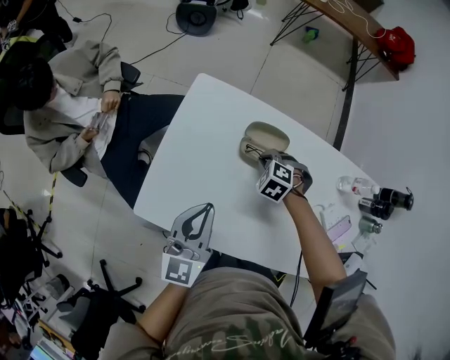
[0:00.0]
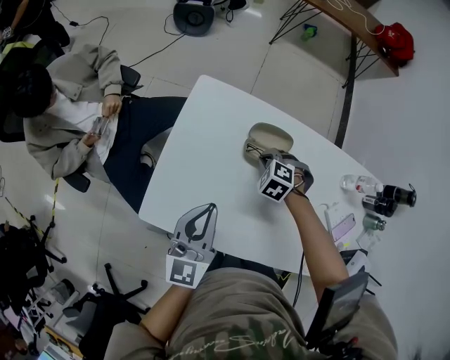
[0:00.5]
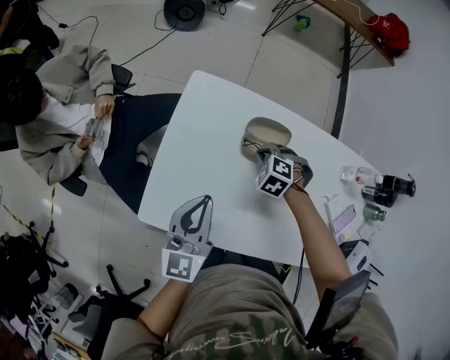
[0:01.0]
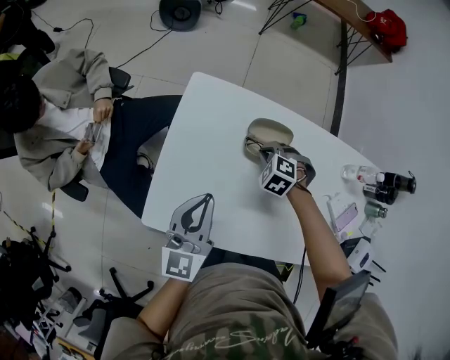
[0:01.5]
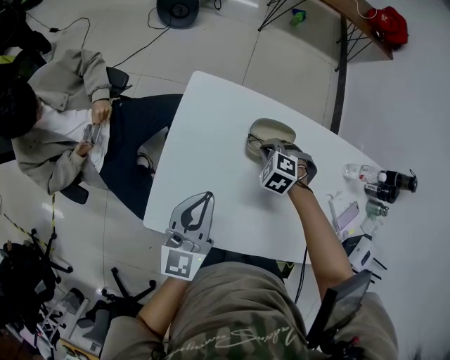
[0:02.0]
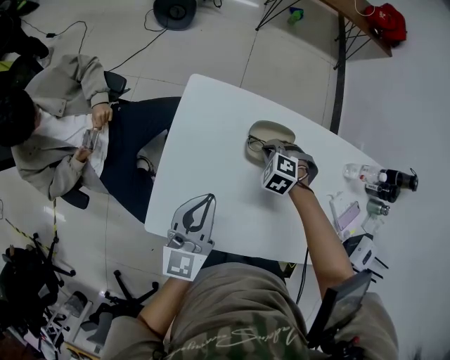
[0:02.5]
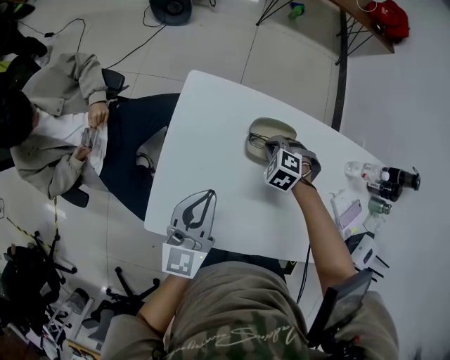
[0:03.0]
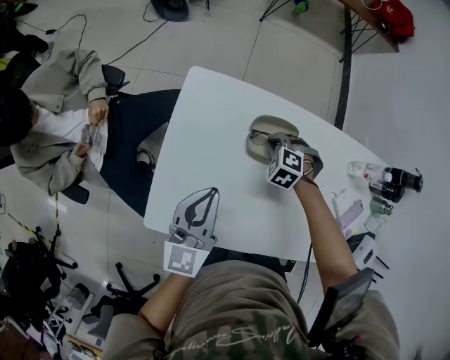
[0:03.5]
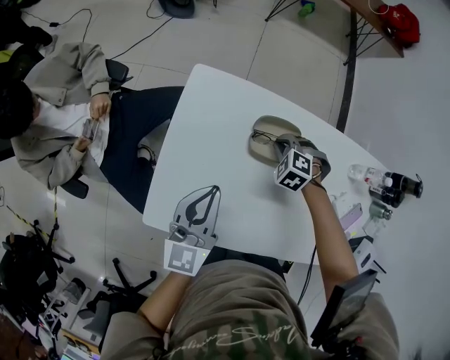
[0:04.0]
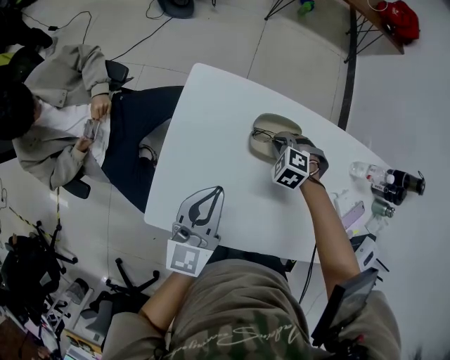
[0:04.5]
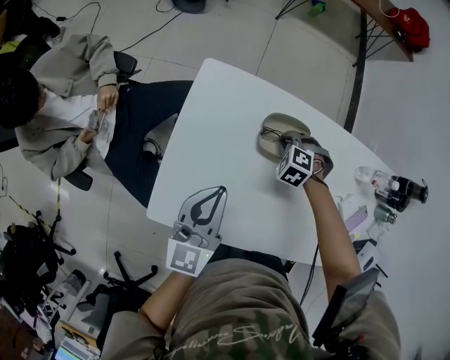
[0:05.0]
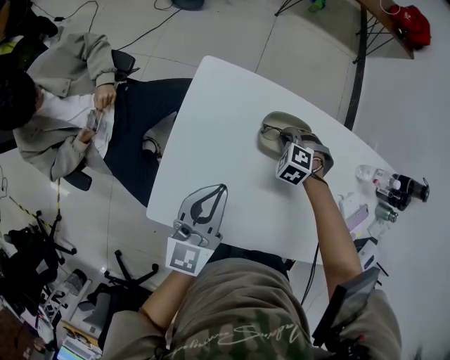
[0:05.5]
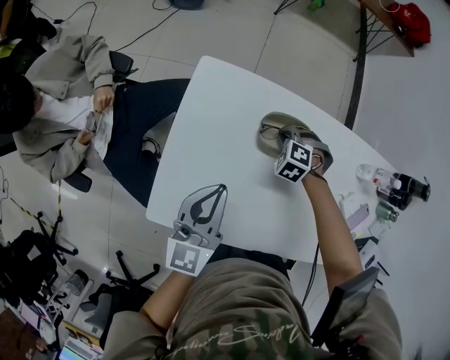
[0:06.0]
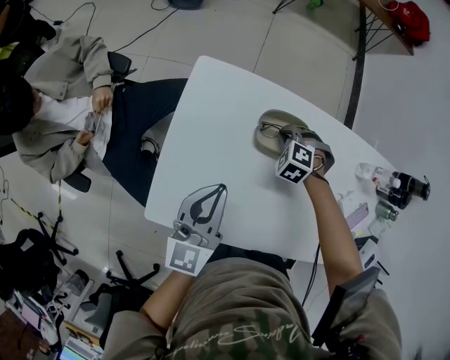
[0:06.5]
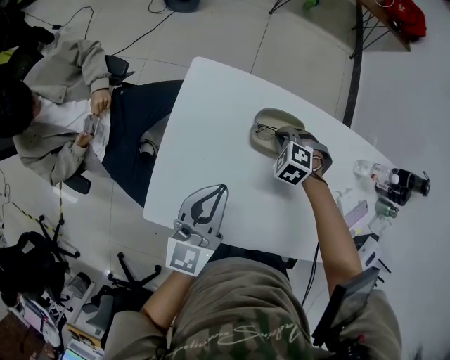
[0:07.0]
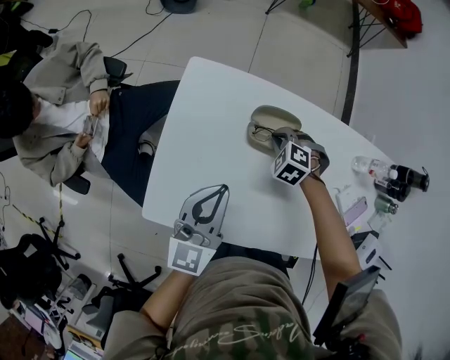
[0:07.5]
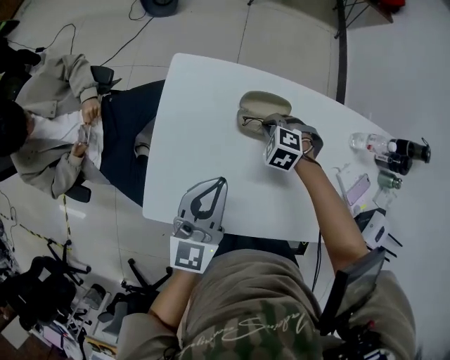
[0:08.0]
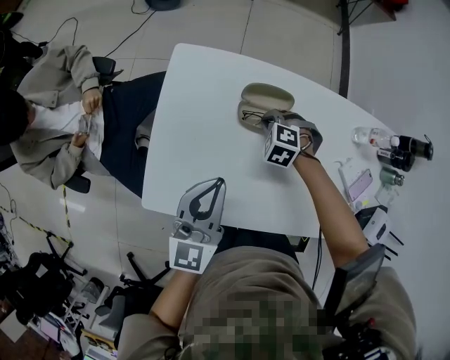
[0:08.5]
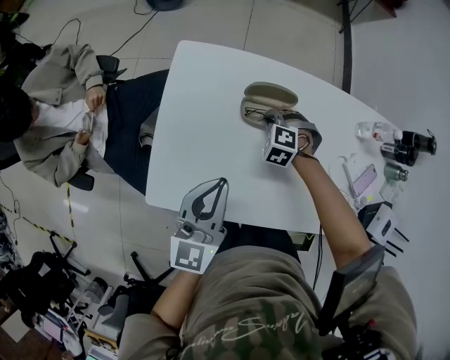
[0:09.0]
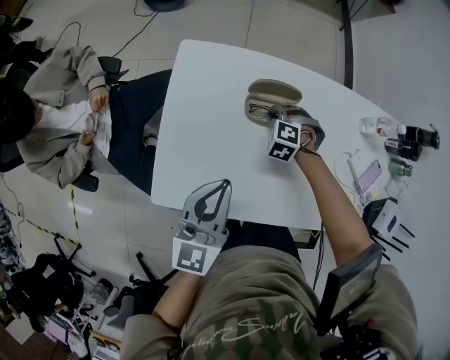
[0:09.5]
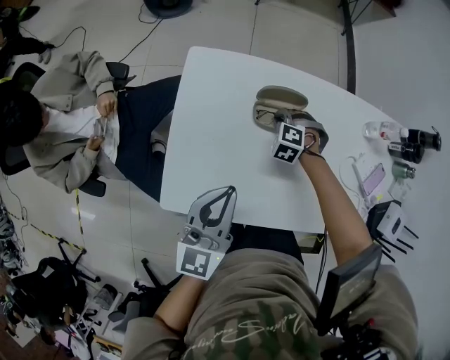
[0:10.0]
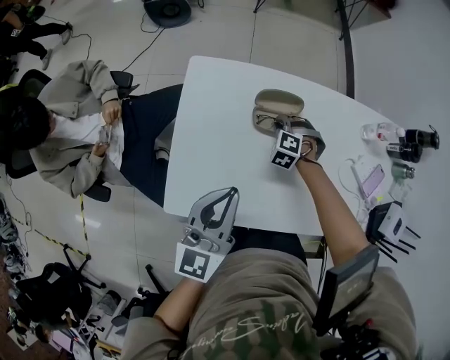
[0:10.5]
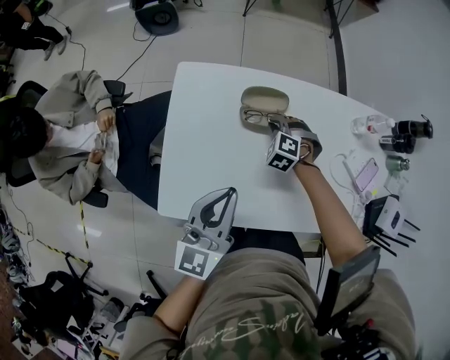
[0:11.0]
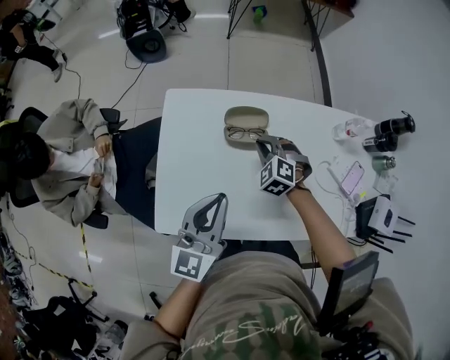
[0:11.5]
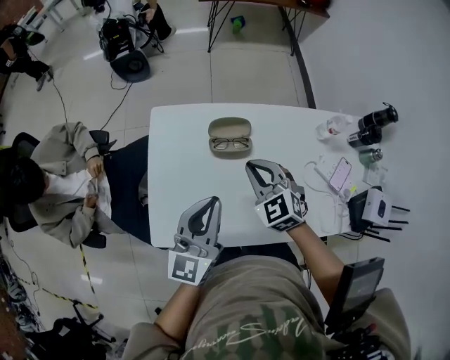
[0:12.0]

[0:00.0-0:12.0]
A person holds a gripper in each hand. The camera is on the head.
0:00.0 to 0:02.0: The left gripper shifts by approximately 5 cm.
0:02.0 to 0:08.0: The grippers move only a little.
0:08.0 to 0:10.0: The left gripper shifts by about 5 cm.
0:10.0 to 0:12.0: The left gripper goes roughly 10 cm upward and to the right; the right gripper goes roughly 25 cm upward, and angles its fingers upward, by approximately 30 degrees.

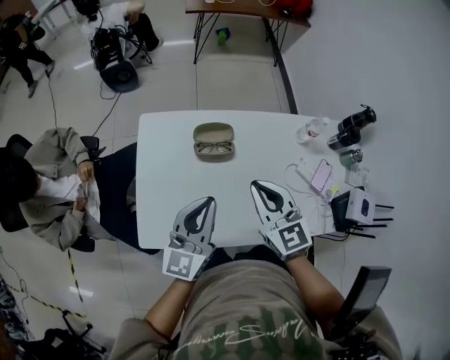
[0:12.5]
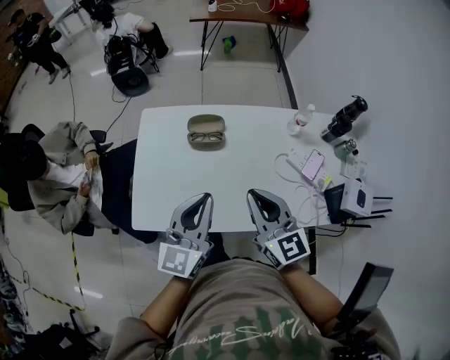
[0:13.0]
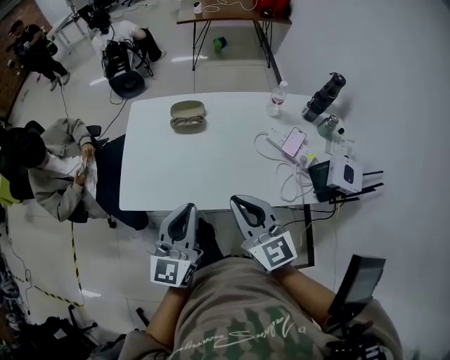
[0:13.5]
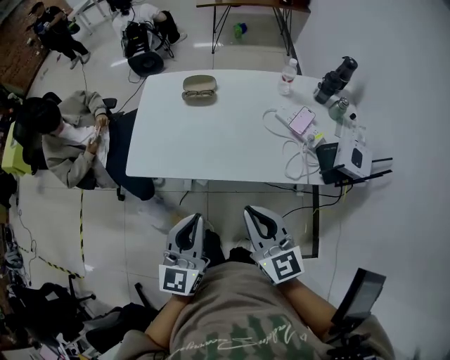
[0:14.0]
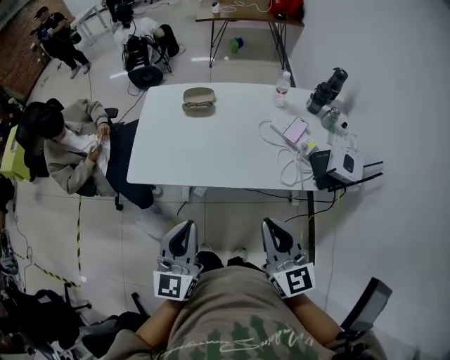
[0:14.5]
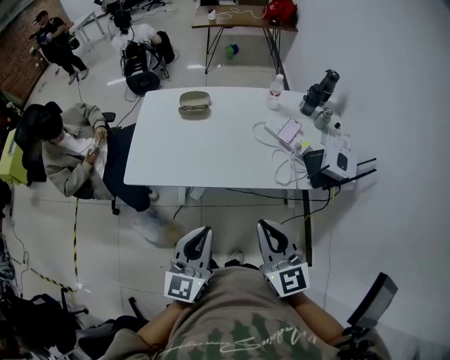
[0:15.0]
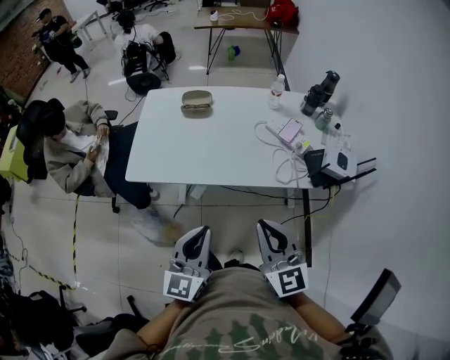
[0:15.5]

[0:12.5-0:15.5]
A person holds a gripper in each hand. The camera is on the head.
0:12.5 to 0:14.0: Both grippers move backward, about 35 cm.
0:14.0 to 0:15.5: The two grippers go roughly 5 cm backward.

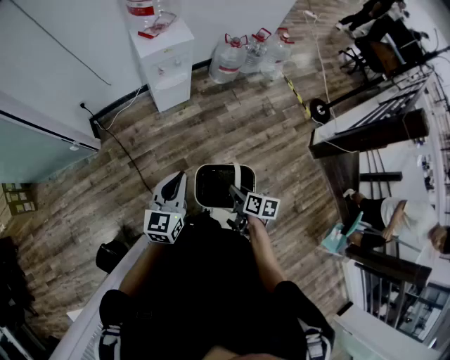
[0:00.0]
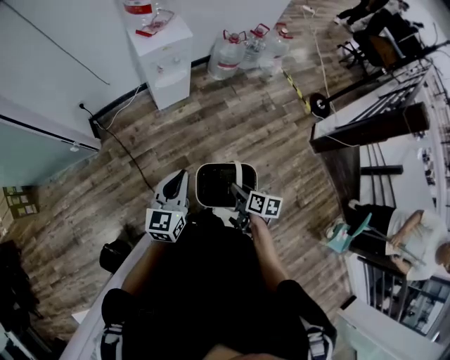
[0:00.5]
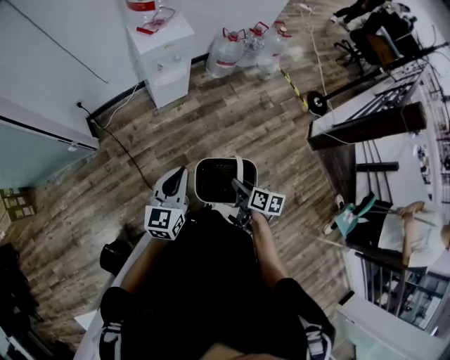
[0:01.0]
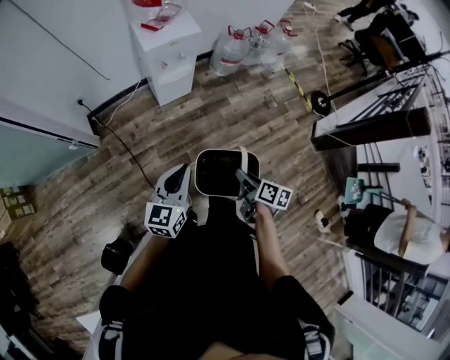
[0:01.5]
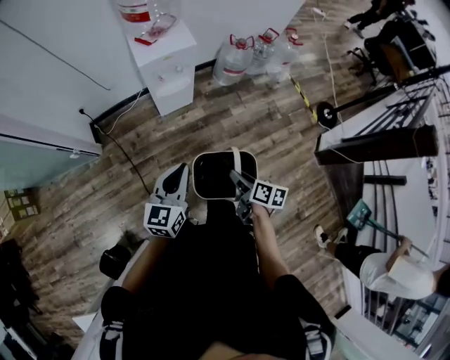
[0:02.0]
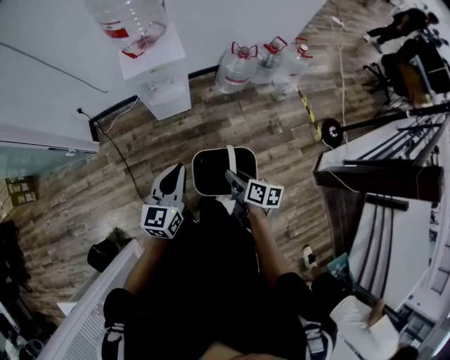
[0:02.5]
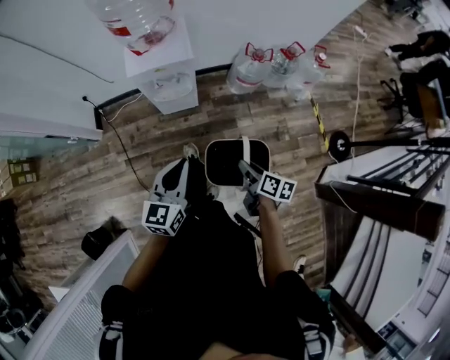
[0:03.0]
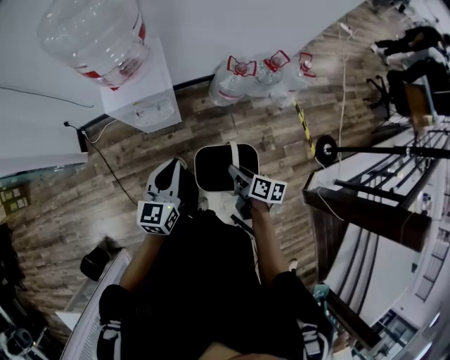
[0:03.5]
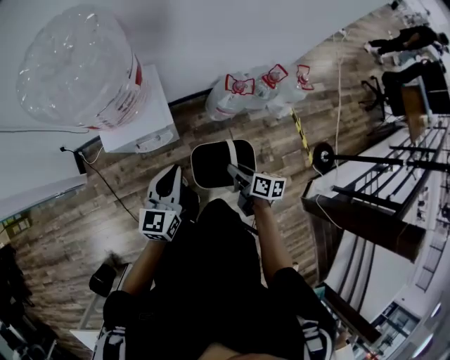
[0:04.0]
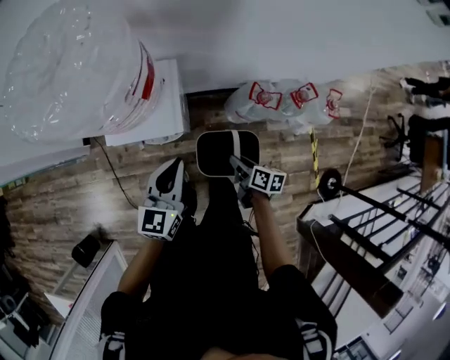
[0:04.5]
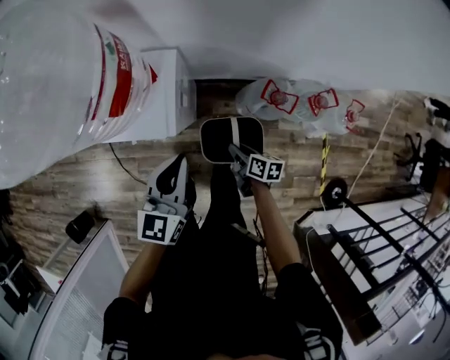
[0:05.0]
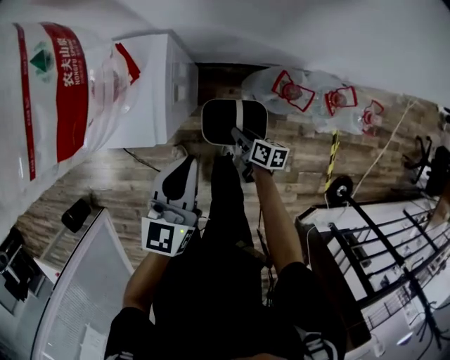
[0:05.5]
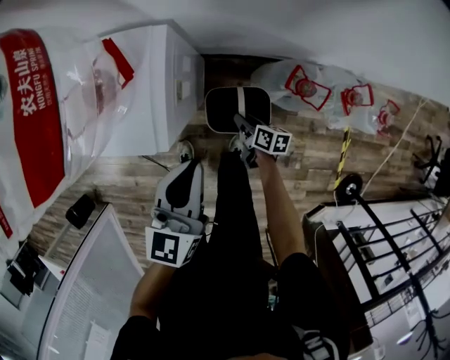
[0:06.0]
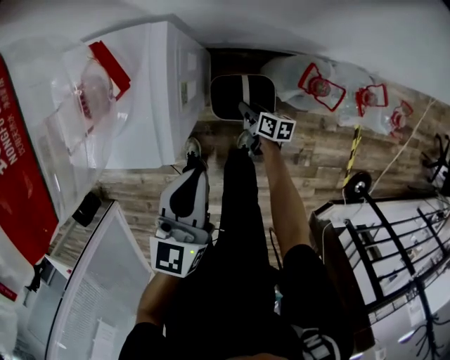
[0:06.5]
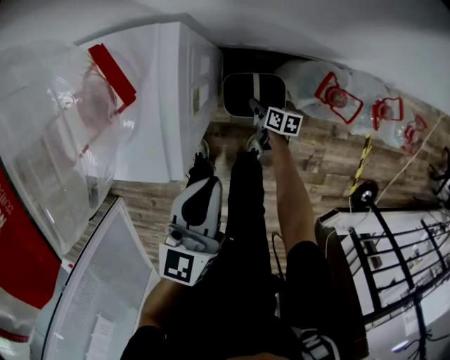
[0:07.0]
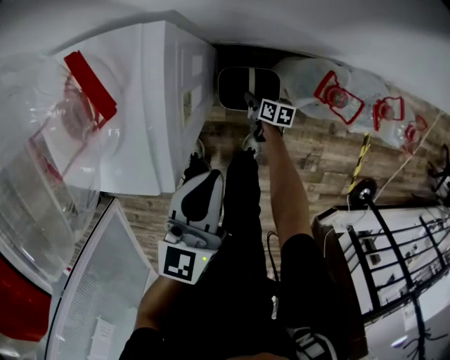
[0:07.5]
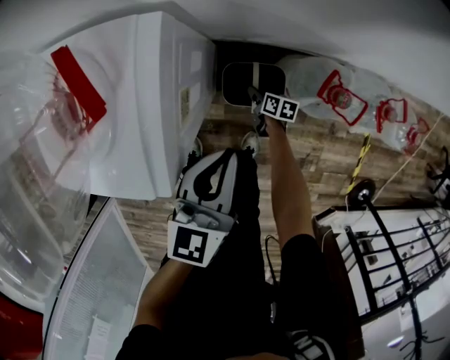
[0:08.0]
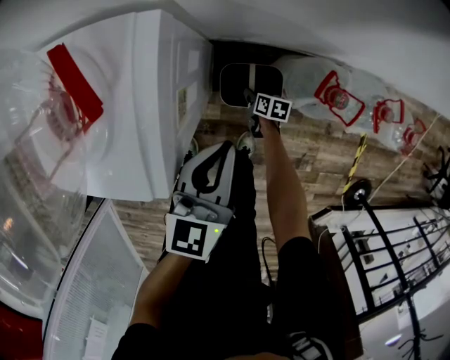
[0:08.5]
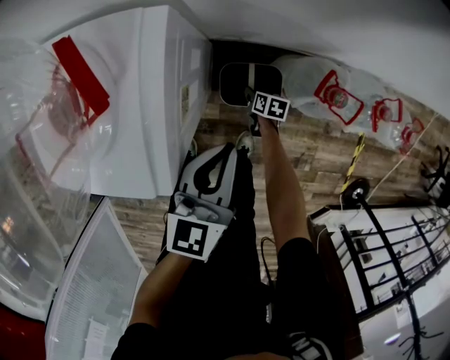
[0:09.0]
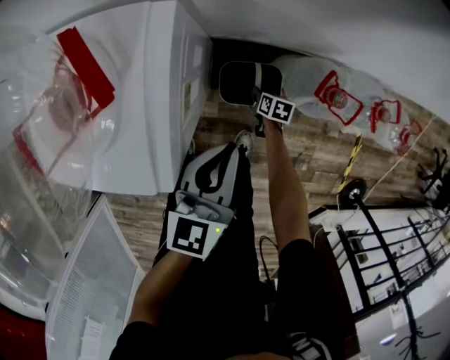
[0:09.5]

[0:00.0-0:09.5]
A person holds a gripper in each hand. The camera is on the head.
0:00.0 to 0:02.0: Both grippers move forward, approximately 15 cm.
0:02.0 to 0:04.0: The two grippers travel together, forward and to the right, approximately 50 cm.
0:04.0 to 0:05.5: The left gripper is displaced forward, to the right and downward by about 20 cm, and changes its angle by roughly 20 degrees. Meanwhile the right gripper is displaced downward and forward by roughly 30 cm, and turns by roughly 20 degrees.
0:05.5 to 0:07.5: The left gripper travels downward by some 10 cm. The right gripper is displaced downward by some 25 cm.
0:07.5 to 0:09.5: The left gripper heads downward, covering roughly 5 cm, while the right gripper moves roughly 5 cm.

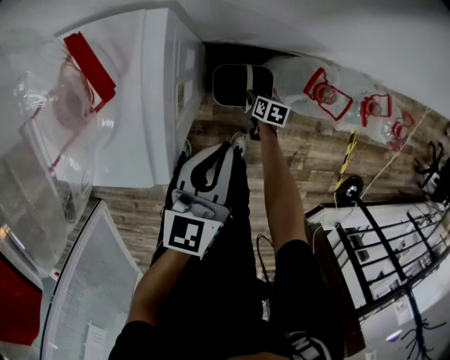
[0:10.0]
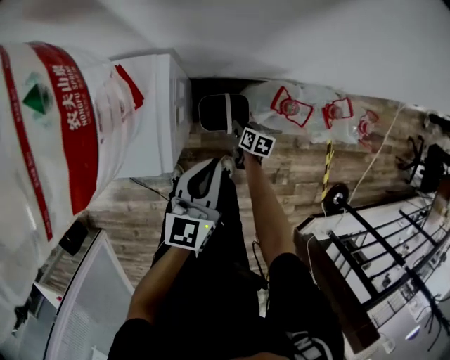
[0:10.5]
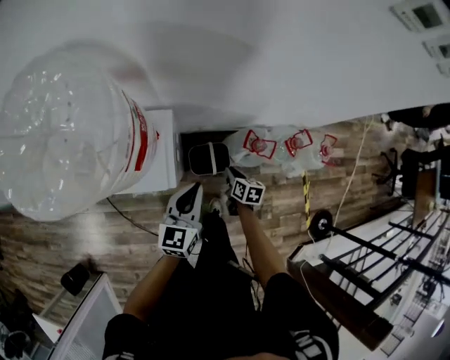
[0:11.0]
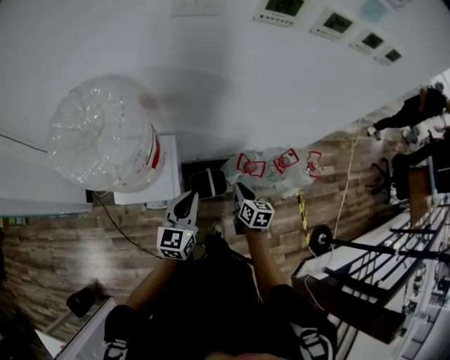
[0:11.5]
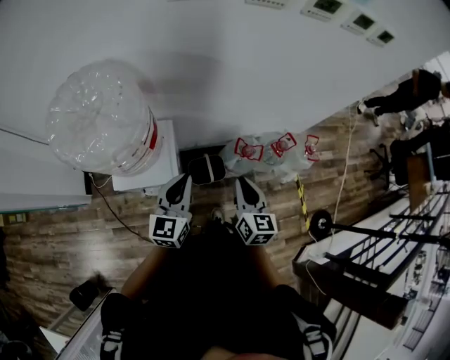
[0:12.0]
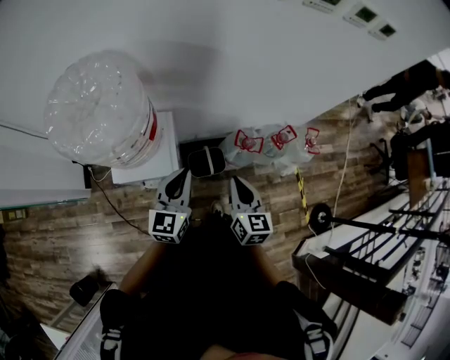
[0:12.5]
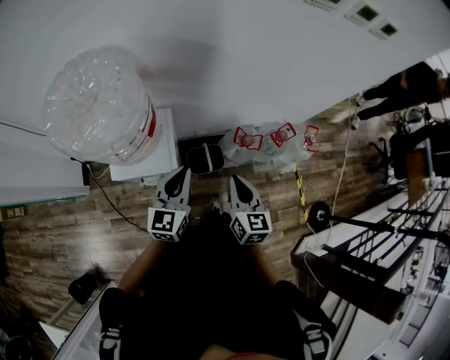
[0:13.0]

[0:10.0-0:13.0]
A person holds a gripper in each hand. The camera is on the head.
0:10.0 to 0:11.5: The right gripper is displaced upward by roughly 50 cm, turns by approximately 30 degrees, and closes its fingers; the left gripper moves upward, roughly 30 cm.
0:11.5 to 0:13.0: The right gripper heads upward and backward, covering about 15 cm.
